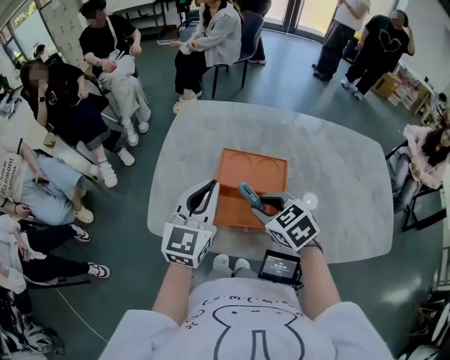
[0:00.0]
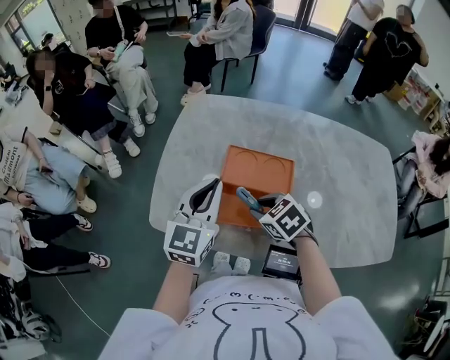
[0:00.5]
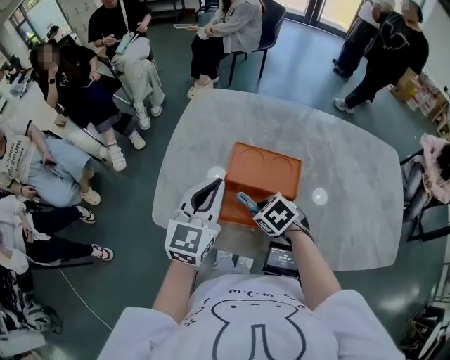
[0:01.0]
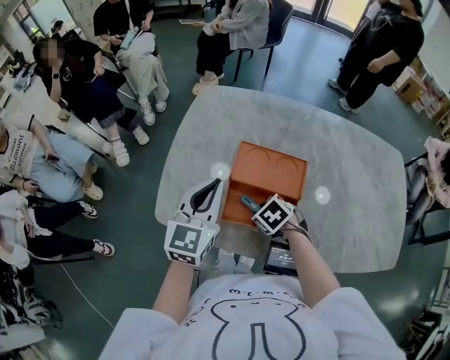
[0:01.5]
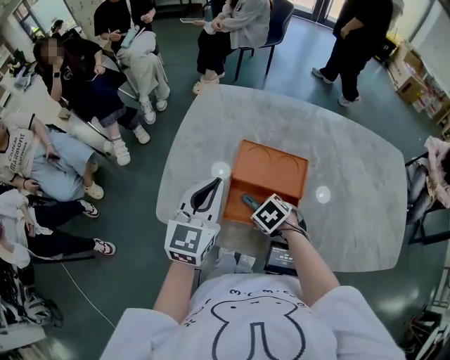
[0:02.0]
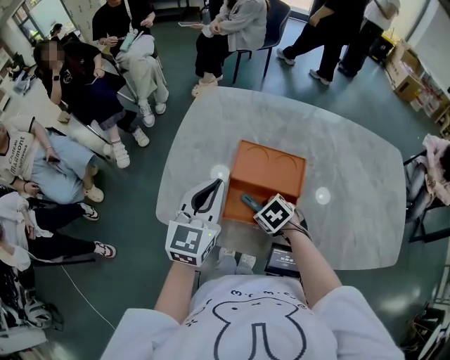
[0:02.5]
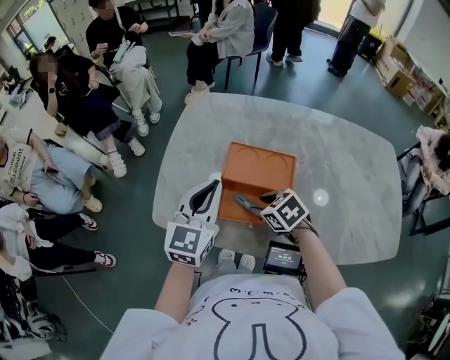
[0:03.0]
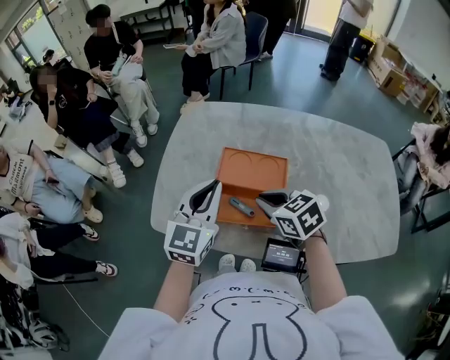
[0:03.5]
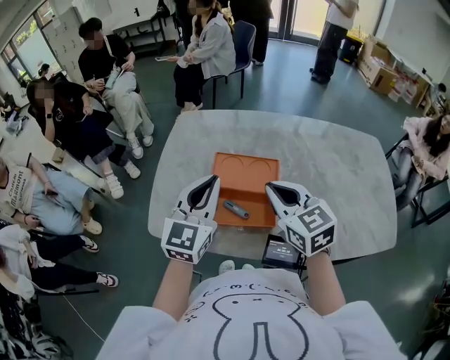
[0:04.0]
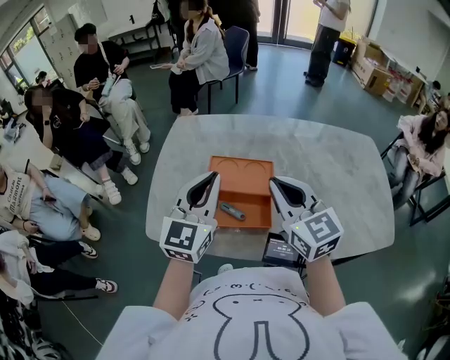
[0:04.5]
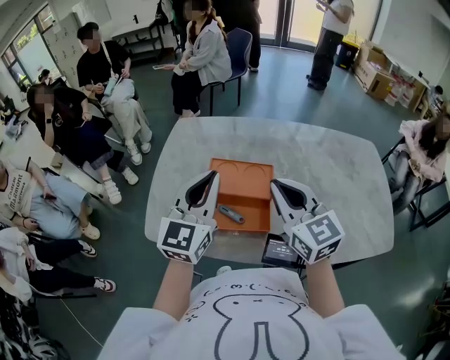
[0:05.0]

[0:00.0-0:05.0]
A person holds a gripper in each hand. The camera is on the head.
0:00.0 to 0:02.5: The right gripper travels downward by about 15 cm, and changes its angle by roughly 30 degrees.
0:02.5 to 0:05.0: The left gripper heads upward and to the right, covering roughly 10 cm. Meanwhile the right gripper is displaced upward by roughly 30 cm, tilts its fingers roughly 60 degrees upward, and closes.

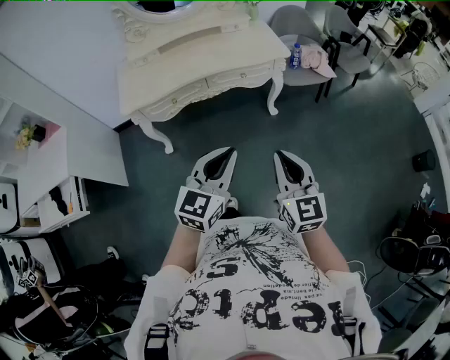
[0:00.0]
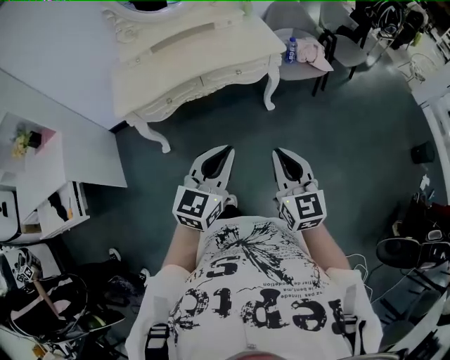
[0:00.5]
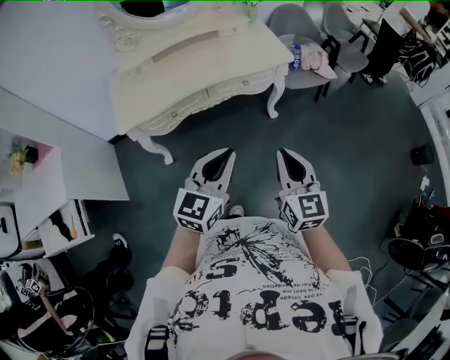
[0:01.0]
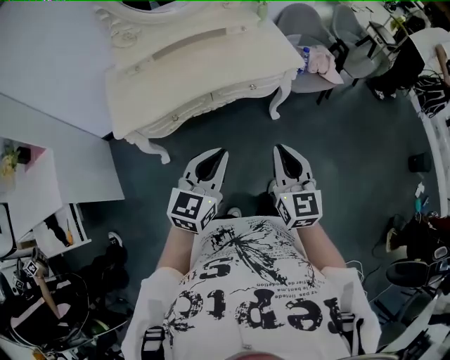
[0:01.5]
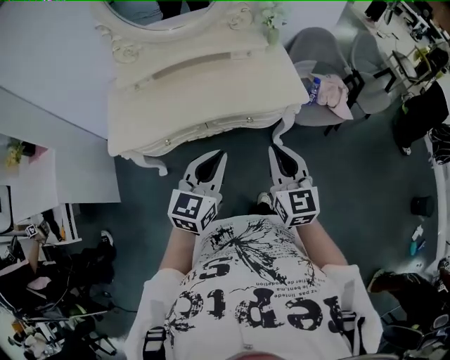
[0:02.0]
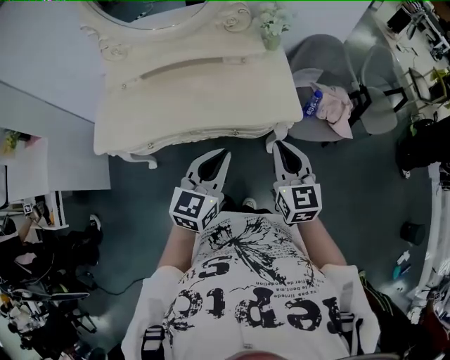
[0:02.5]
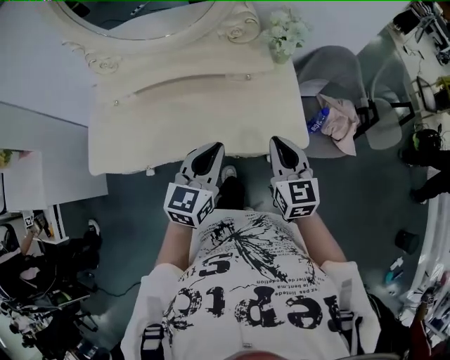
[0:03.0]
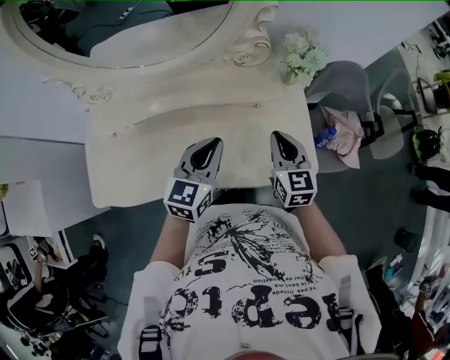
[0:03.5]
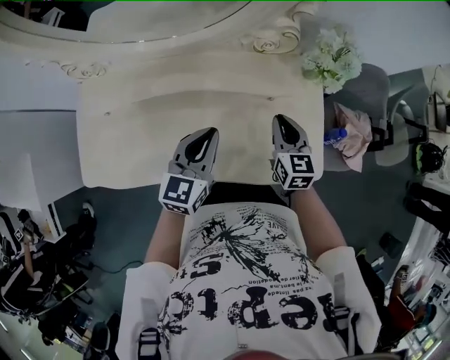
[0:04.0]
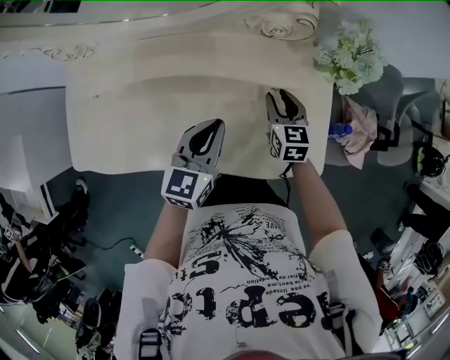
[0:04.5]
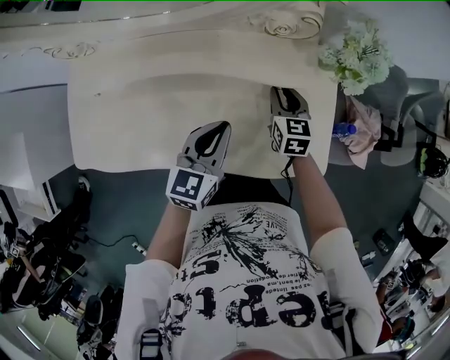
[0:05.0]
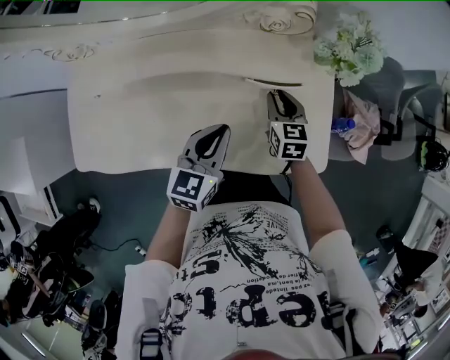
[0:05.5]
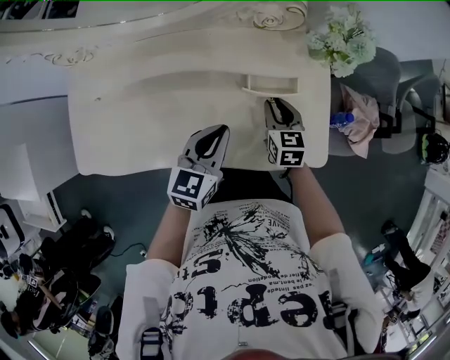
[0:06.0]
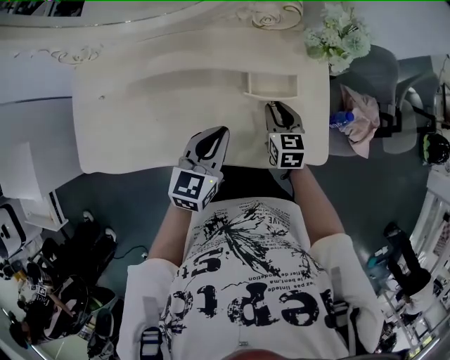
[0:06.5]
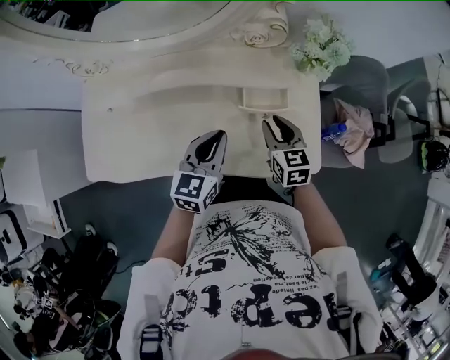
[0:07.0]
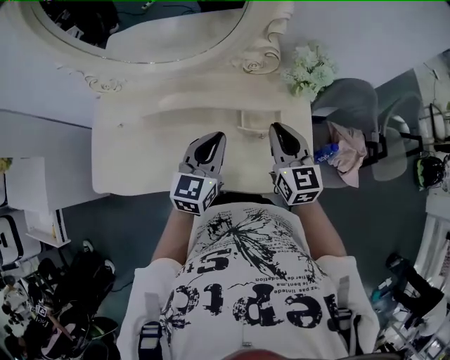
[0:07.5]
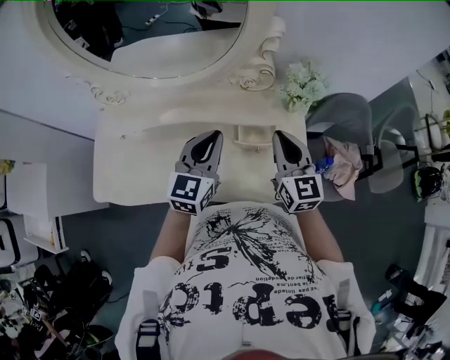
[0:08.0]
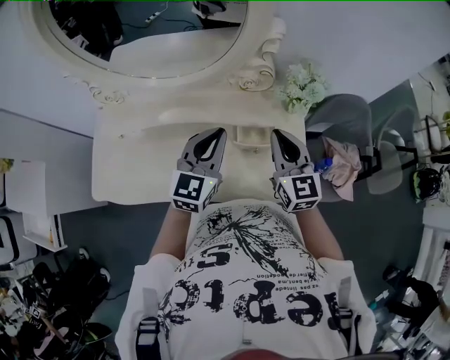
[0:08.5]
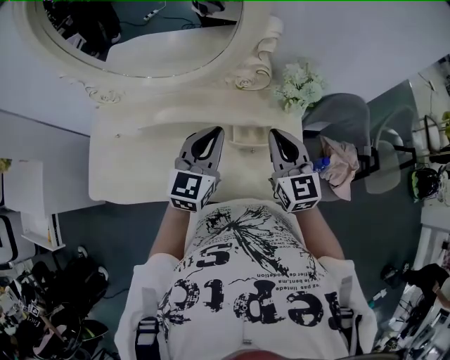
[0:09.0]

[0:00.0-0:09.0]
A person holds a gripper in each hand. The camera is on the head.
0:00.0 to 0:02.0: The two grippers go about 30 cm forward.
0:02.0 to 0:04.5: The pair of grippers is taken forward, approximately 50 cm. The right gripper shifts roughly 25 cm downward, changes its angle by some 30 degrees, and opens its fingers.
0:04.5 to 0:07.0: The right gripper moves backward and upward, roughly 10 cm.
0:07.0 to 0:09.0: The left gripper shifts some 15 cm upward and forward. Meanwhile the right gripper travels upward by about 15 cm, rotates about 20 degrees, and closes up.

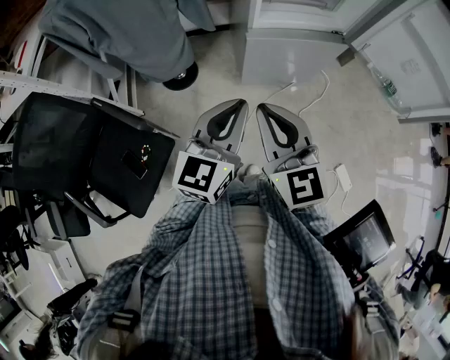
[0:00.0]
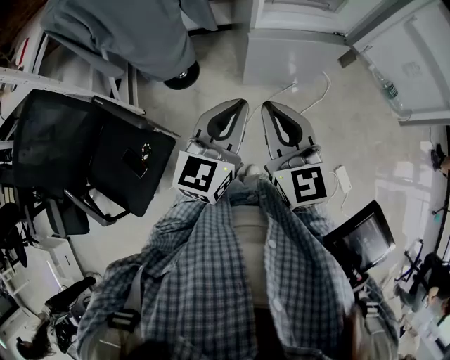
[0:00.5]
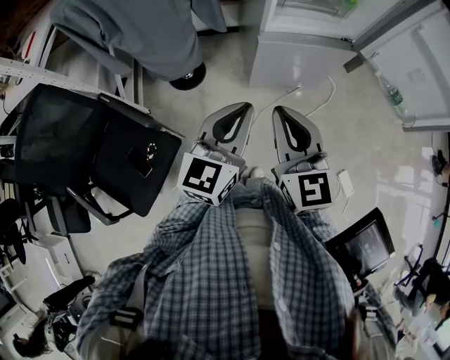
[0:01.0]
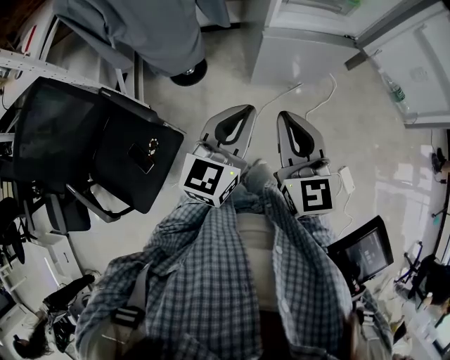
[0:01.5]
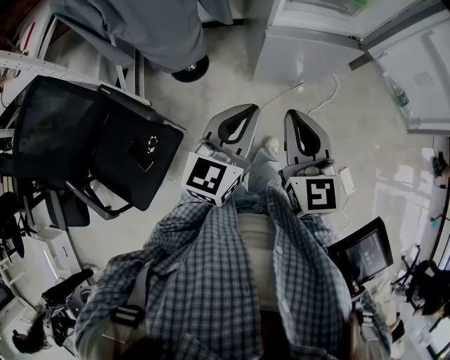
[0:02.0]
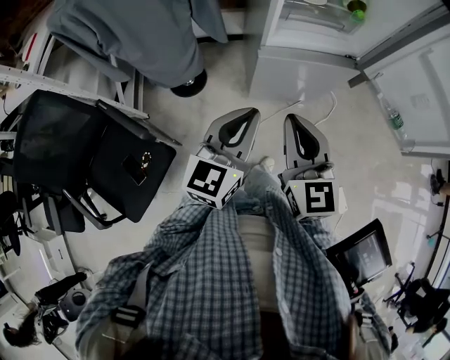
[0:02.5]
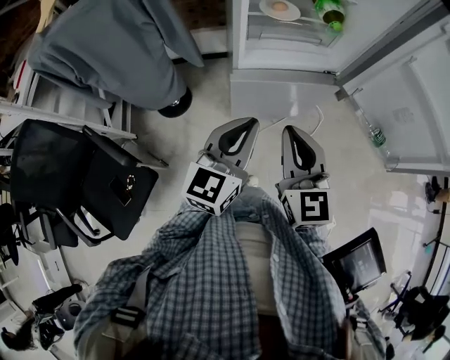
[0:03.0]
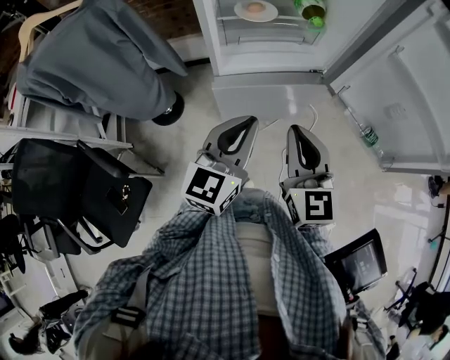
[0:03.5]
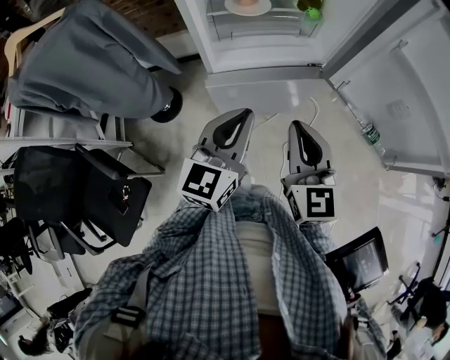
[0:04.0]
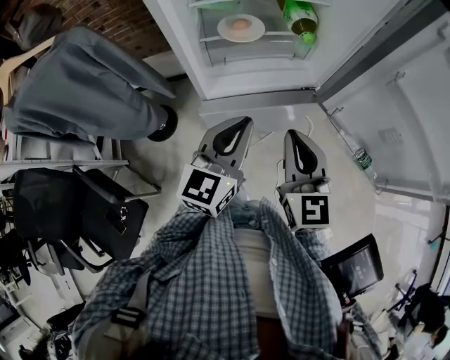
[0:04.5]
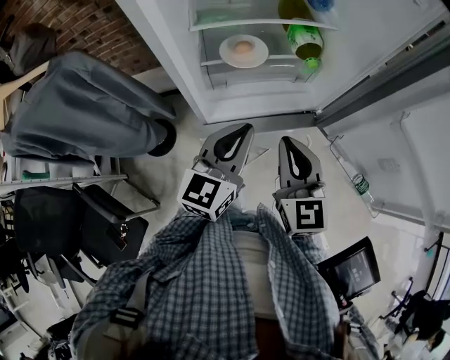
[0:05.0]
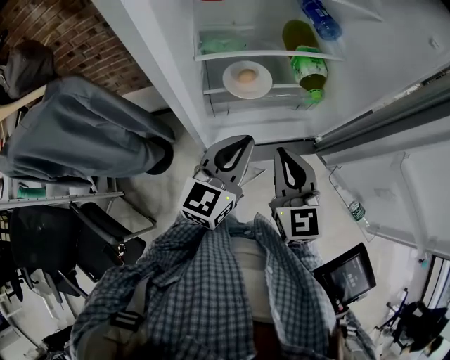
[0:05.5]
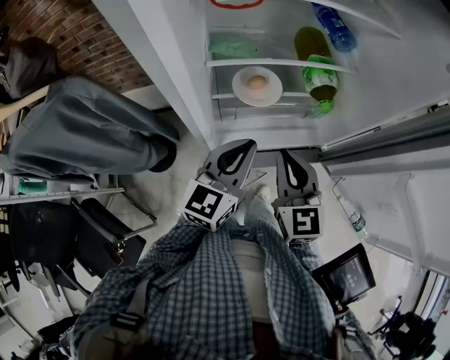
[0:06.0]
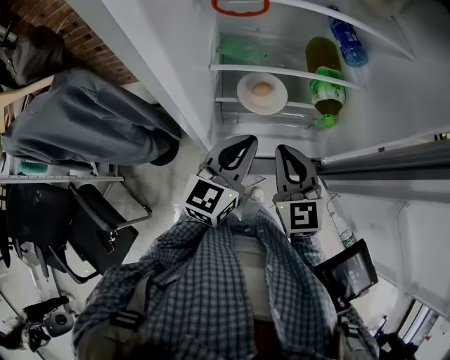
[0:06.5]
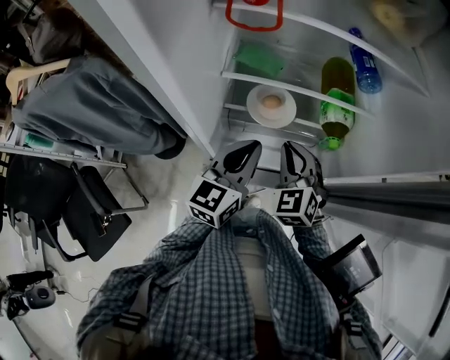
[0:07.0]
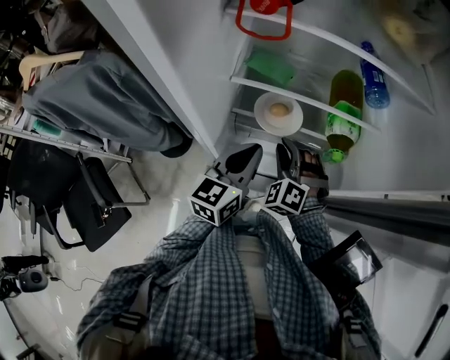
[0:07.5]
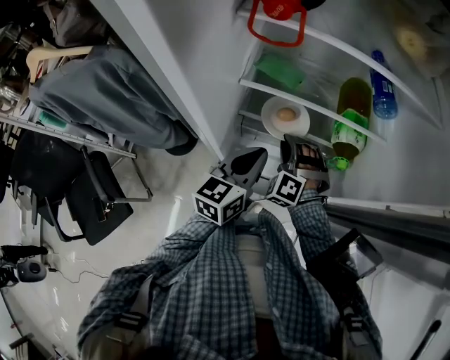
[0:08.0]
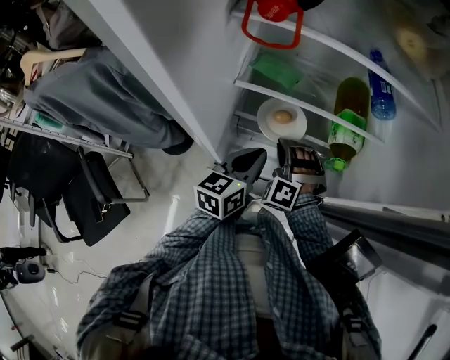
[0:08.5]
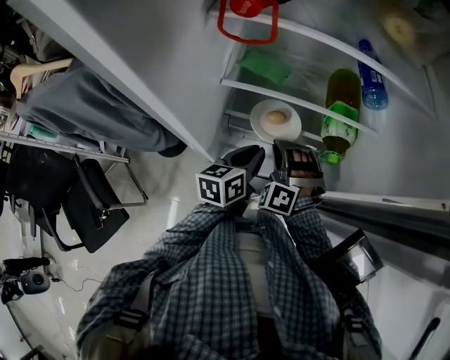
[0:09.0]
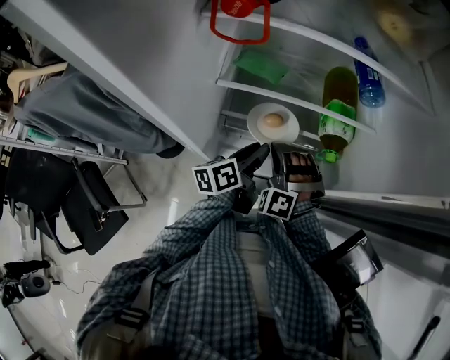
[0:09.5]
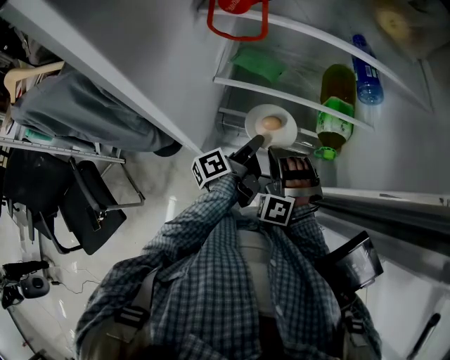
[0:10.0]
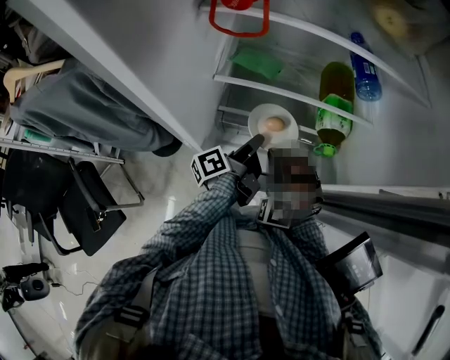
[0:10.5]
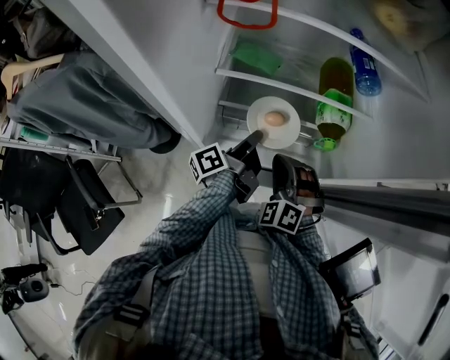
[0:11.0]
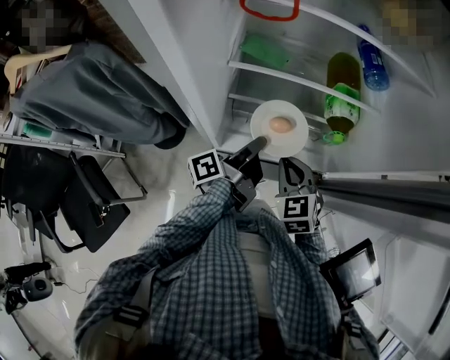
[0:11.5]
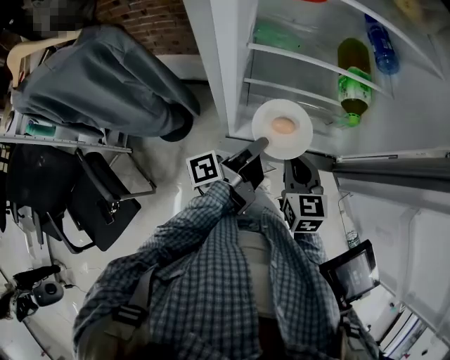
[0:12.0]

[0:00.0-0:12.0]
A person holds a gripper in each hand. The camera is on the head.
0:00.0 to 0:02.0: There are only small adjustments of the grippers.
0:02.0 to 0:04.0: The right gripper is displaced to the right and forward by roughly 30 cm. Meanwhile the left gripper moves forward and to the right, some 25 cm.
0:04.0 to 0:06.0: Both grippers move forward, some 20 cm.
0:06.0 to 0:08.0: The left gripper moves forward, some 5 cm, and rotates roughly 20 degrees. Meanwhile the right gripper heads forward and downward, covering about 20 cm, and twists approximately 70 degrees counterclockwise, seen from behind.
0:08.0 to 0:10.0: The left gripper goes approximately 10 cm downward and forward, rotates around the line of its fingers by some 70 degrees, counterclockwise from behind, and opens up; the right gripper ends up approximately 5 cm from where it was.
0:10.0 to 0:12.0: The two grippers go approximately 10 cm backward. The right gripper rotates around the line of its fingers by about 80 degrees, clockwise from behind.

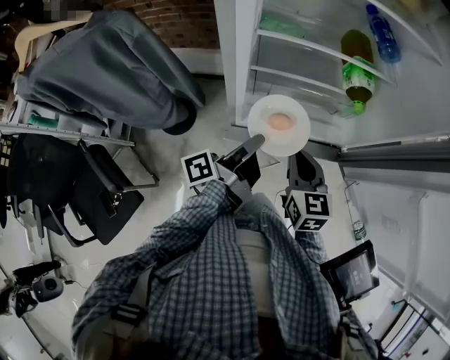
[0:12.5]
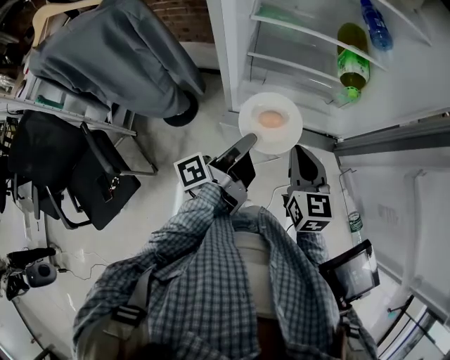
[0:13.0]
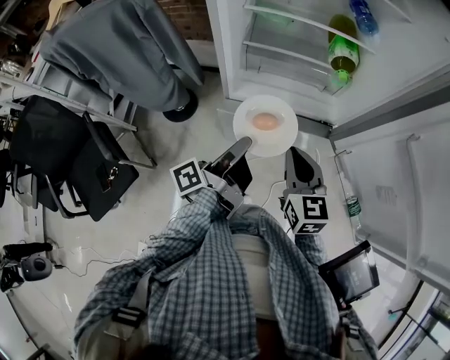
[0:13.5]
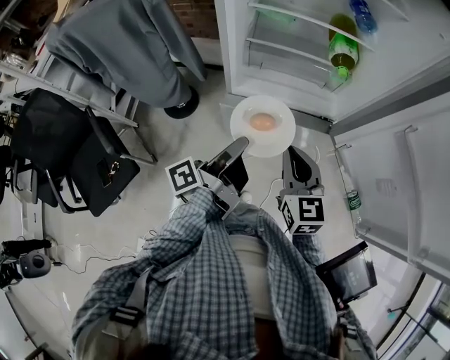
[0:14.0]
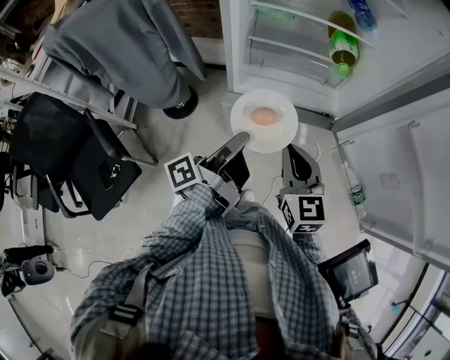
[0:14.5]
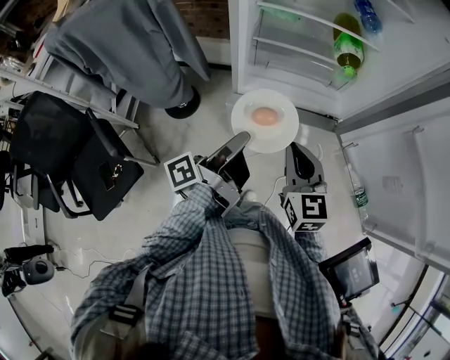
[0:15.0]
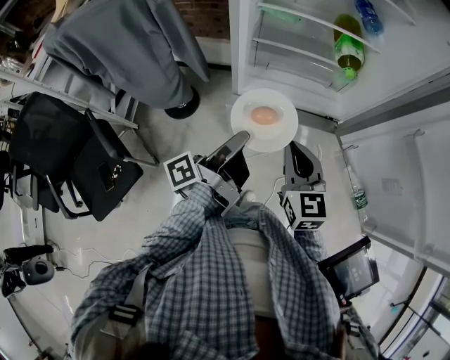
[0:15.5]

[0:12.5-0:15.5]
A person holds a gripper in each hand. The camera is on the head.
0:12.5 to 0:14.0: The grippers both shift backward by roughly 15 cm.
0:14.0 to 0:15.5: The grippers make only small movements.
